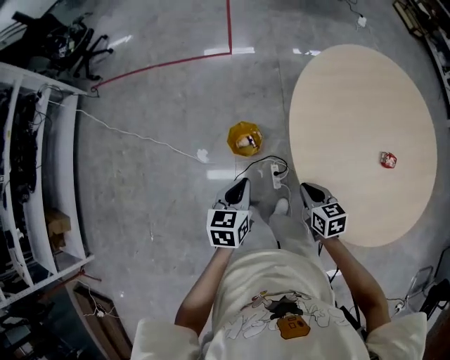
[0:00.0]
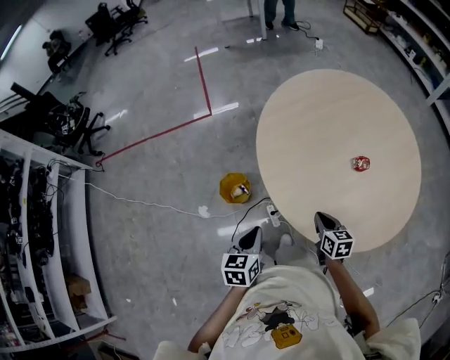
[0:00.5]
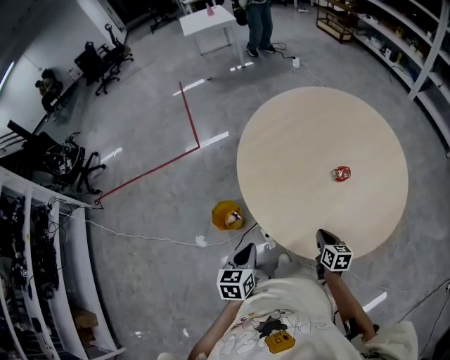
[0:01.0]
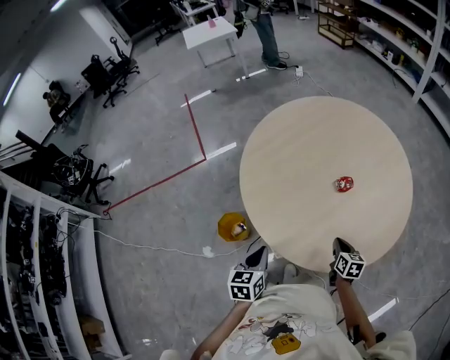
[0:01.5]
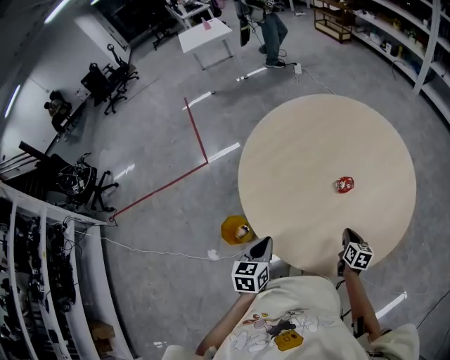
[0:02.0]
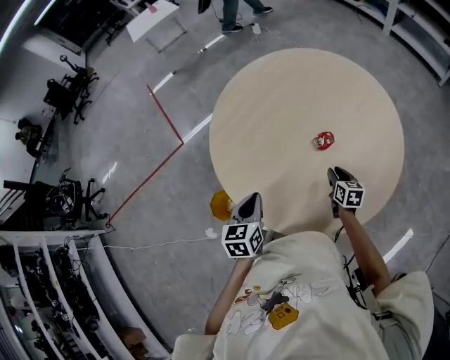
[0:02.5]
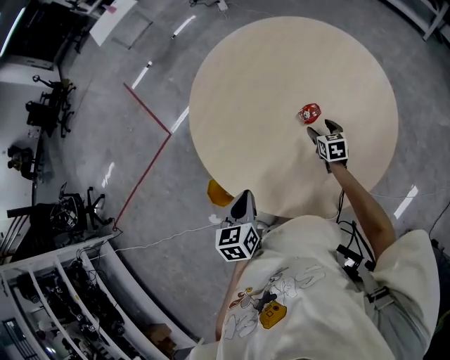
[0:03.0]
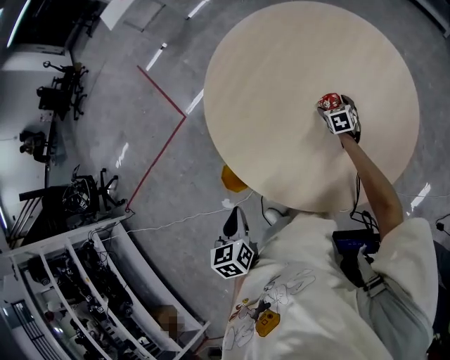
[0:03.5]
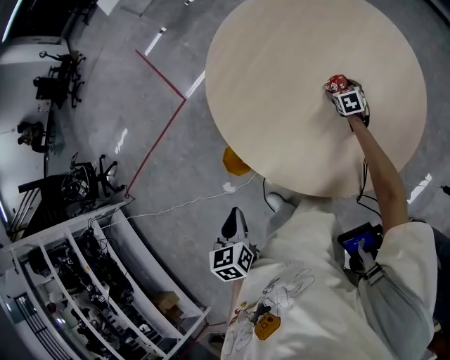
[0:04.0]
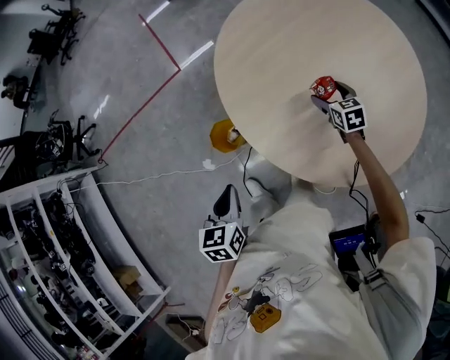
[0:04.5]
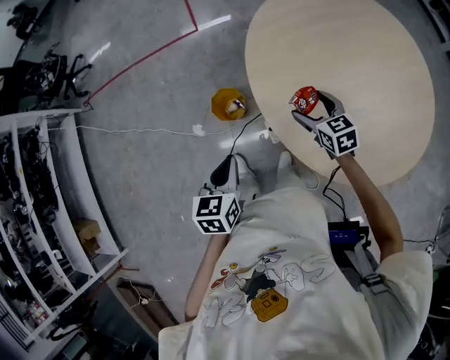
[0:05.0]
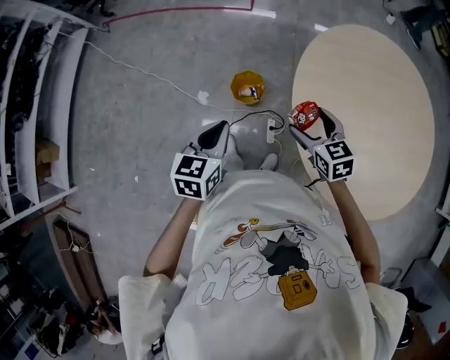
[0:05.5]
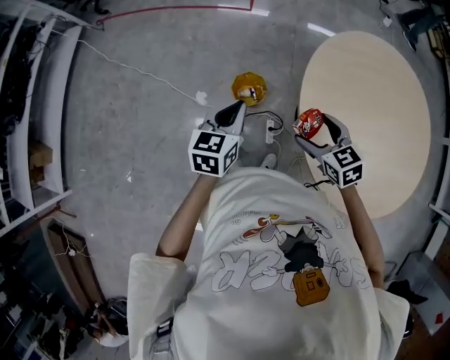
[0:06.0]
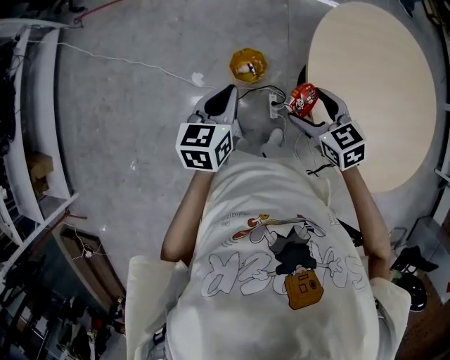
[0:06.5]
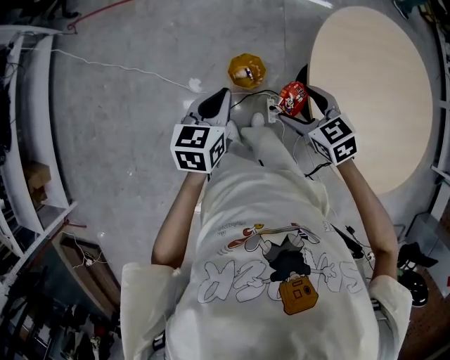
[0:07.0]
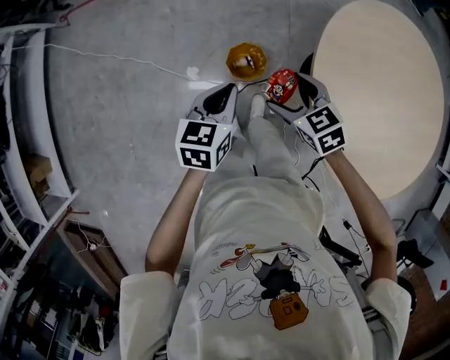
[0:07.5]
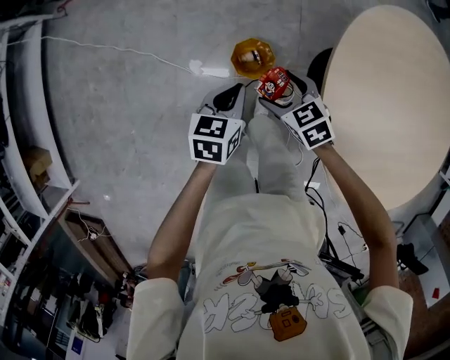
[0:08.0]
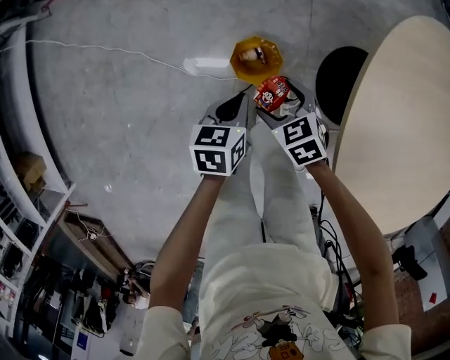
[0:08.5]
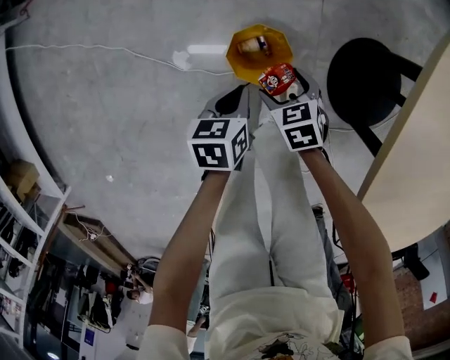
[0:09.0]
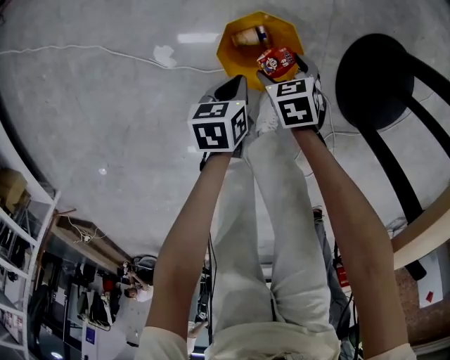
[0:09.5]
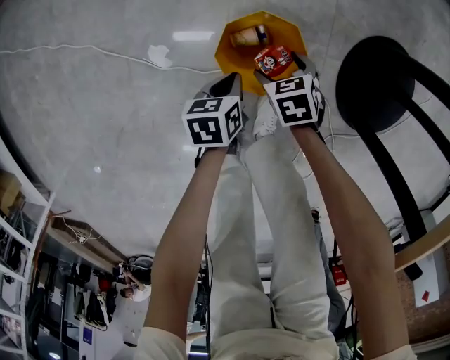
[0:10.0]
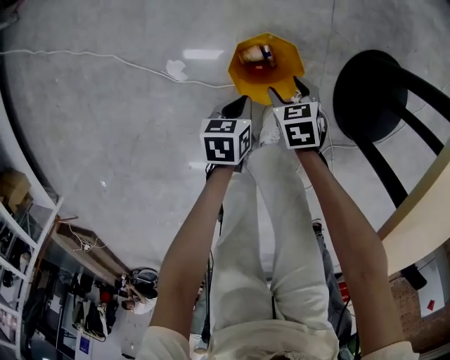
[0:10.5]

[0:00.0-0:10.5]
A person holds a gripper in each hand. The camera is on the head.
0:00.0 to 0:02.0: The left gripper ends up roughly 25 cm from where it was, and turns by some 20 degrees, while the right gripper moves some 40 cm, and swivels some 50 degrees.
0:02.0 to 0:04.0: The right gripper moves forward, about 20 cm, changes its angle by roughly 30 degrees, and opens up. Meanwhile the left gripper travels to the left and backward by approximately 10 cm.
0:04.0 to 0:06.5: The right gripper changes place by about 70 cm, and swivels roughly 60 degrees, while the left gripper moves about 30 cm, and swivels about 30 degrees.
0:06.5 to 0:08.5: The two grippers go approximately 35 cm downward and forward. The left gripper rotates roughly 20 degrees.
0:08.5 to 0:10.5: Both grippers move downward, approximately 30 cm.

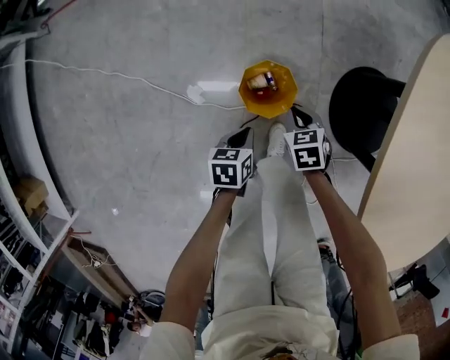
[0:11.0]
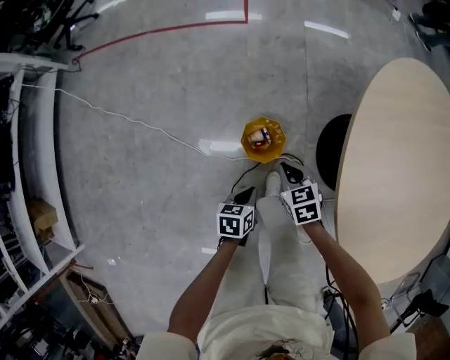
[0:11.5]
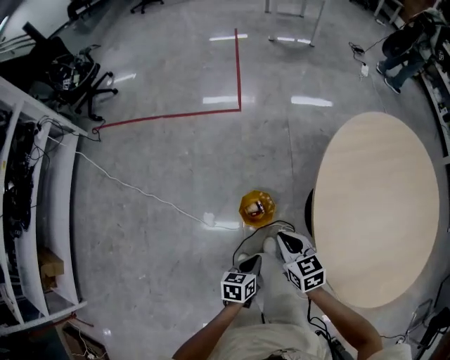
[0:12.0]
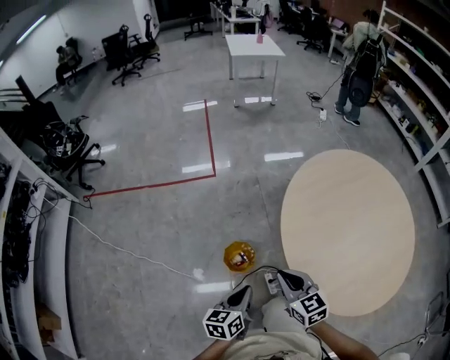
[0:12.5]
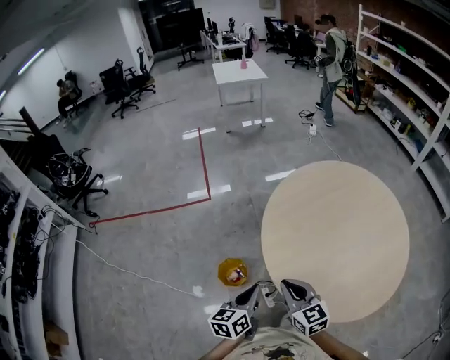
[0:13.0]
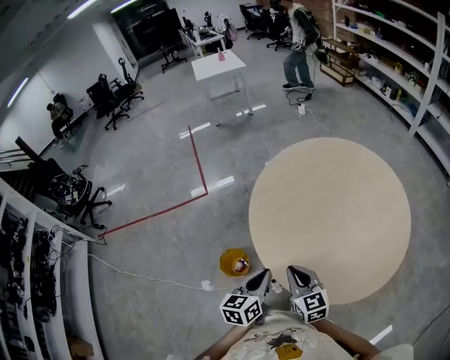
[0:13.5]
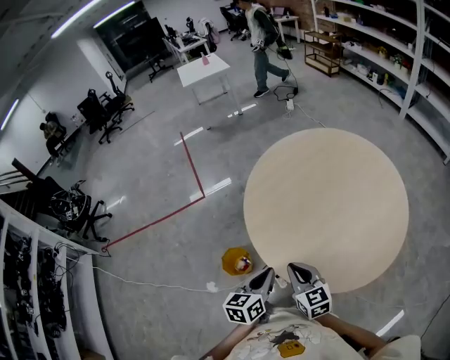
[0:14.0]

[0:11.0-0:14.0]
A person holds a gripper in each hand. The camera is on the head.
0:11.0 to 0:12.5: Both grippers move upward, roughly 50 cm. The left gripper points its fingers approximately 30 degrees further upward, while the right gripper angles its fingers upward, by some 40 degrees.
0:12.5 to 0:14.0: Both grippers move to the right, some 25 cm. The right gripper rotates about 20 degrees.

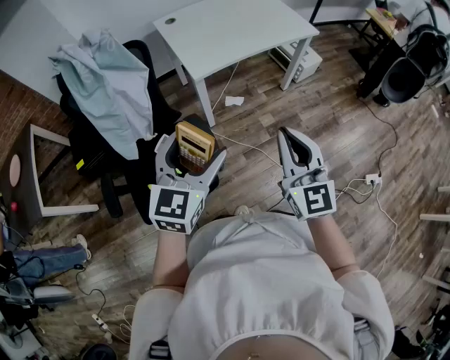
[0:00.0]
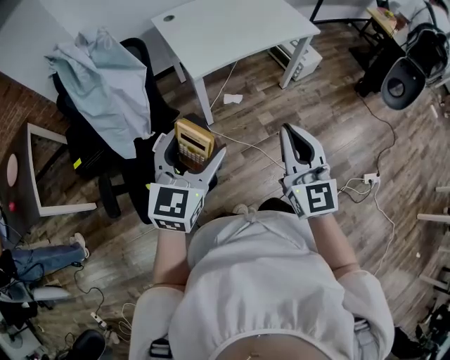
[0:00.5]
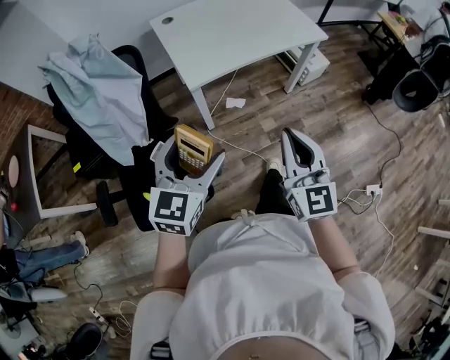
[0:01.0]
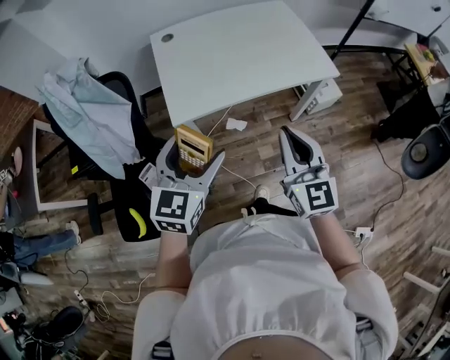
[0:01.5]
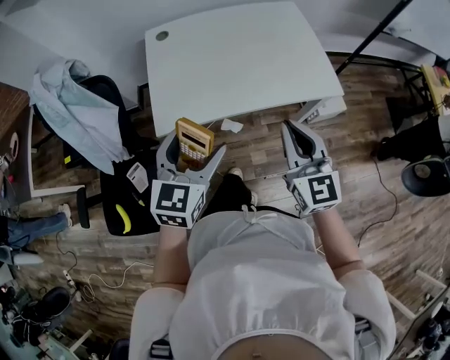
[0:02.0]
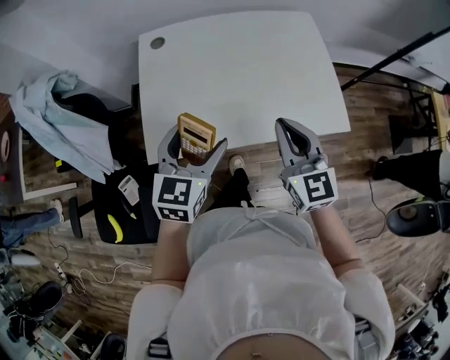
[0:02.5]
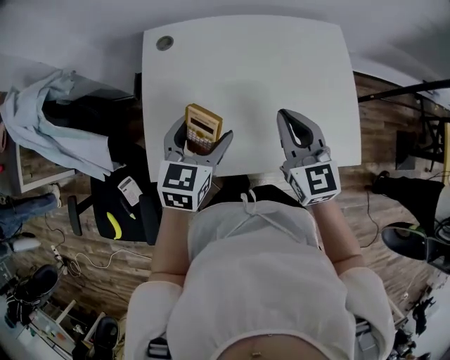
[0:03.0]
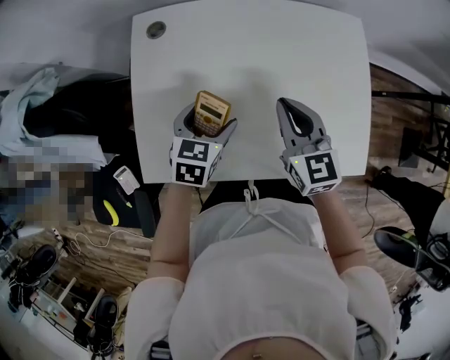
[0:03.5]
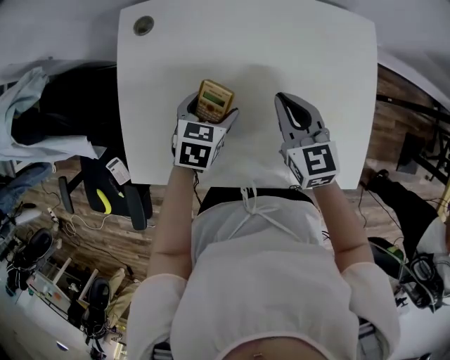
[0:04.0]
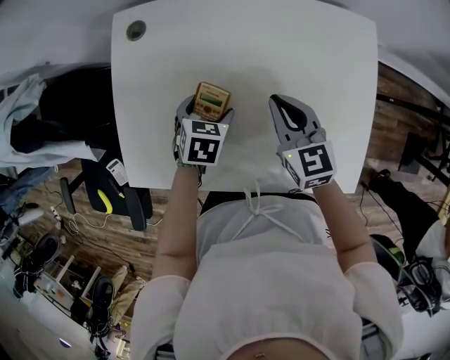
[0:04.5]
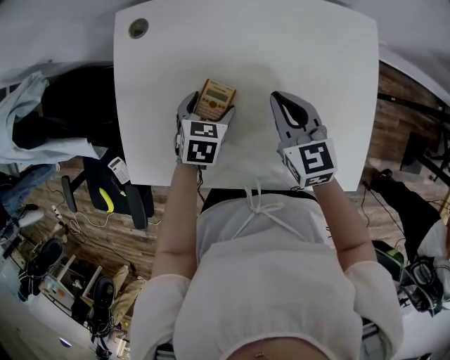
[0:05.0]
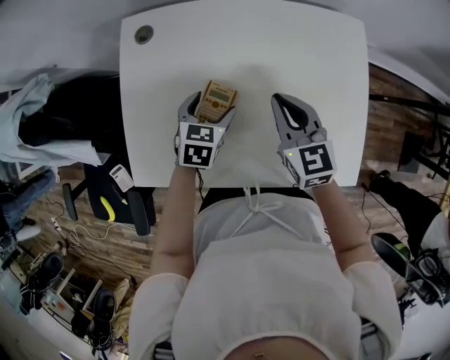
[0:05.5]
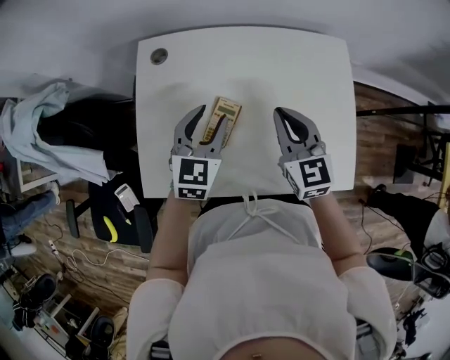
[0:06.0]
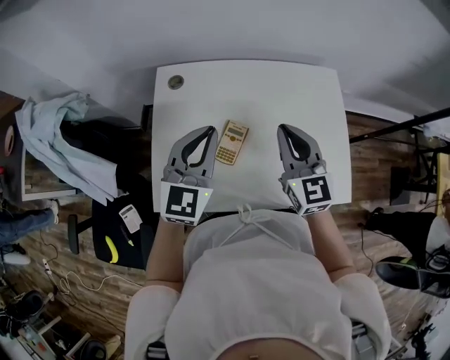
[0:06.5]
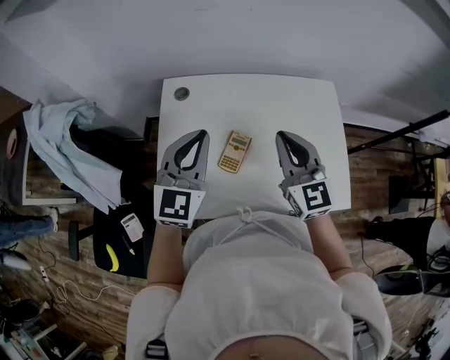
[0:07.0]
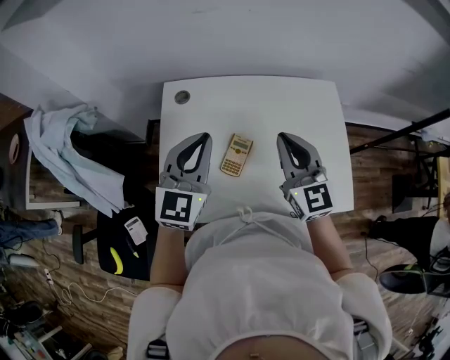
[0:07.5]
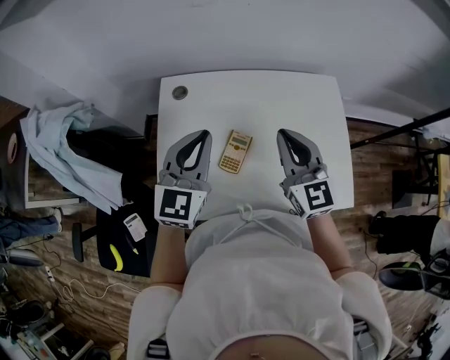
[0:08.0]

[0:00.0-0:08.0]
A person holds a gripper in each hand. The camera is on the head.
0:00.0 to 0:02.0: The two grippers travel together, forward and to the right, about 50 cm. The left gripper rotates approximately 20 degrees.
0:02.0 to 0:04.0: The grippers both shift forward and downward by about 50 cm. The right gripper changes its angle by approximately 30 degrees. Meanwhile the left gripper tips its fingers downward by about 30 degrees.
0:04.0 to 0:06.0: The right gripper travels upward by about 10 cm. Meanwhile the left gripper travels upward by roughly 15 cm, turns by some 30 degrees, and closes its fingers.
0:06.0 to 0:08.0: The right gripper heads upward, covering approximately 10 cm; the left gripper moves upward and to the left, roughly 15 cm, and closes its fingers.

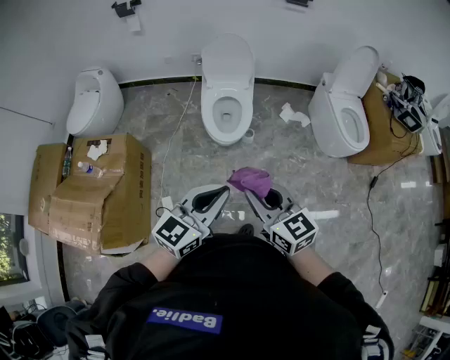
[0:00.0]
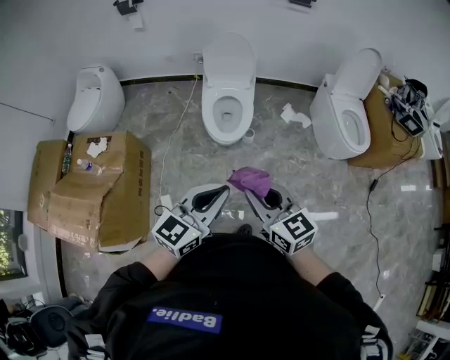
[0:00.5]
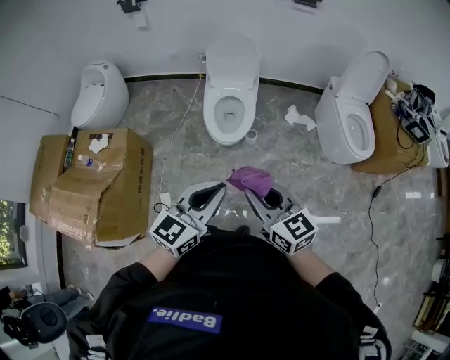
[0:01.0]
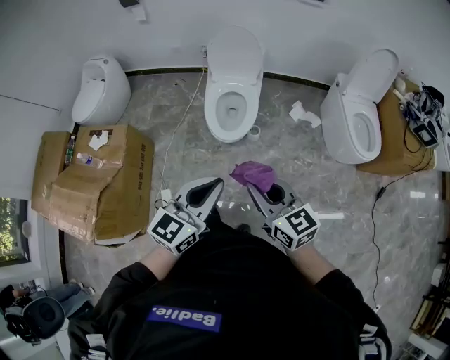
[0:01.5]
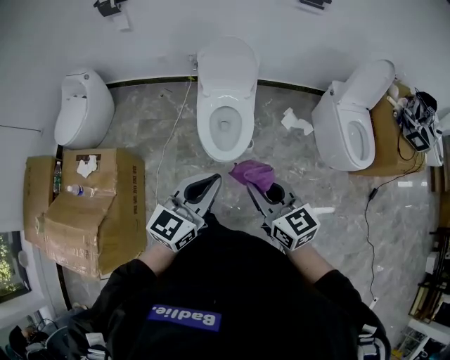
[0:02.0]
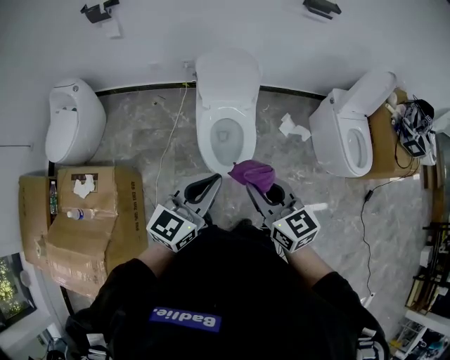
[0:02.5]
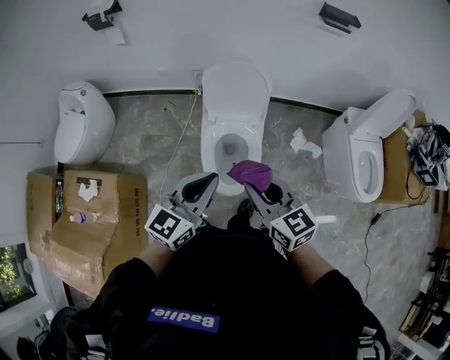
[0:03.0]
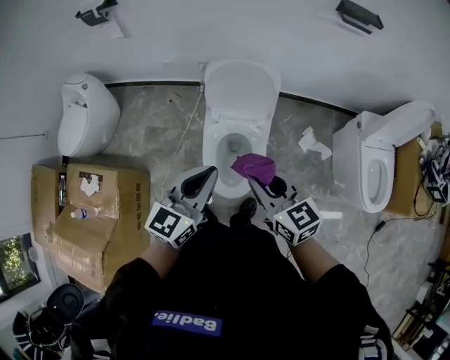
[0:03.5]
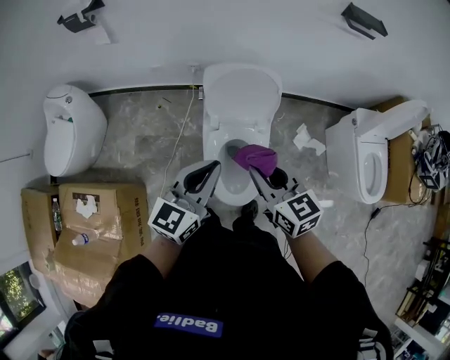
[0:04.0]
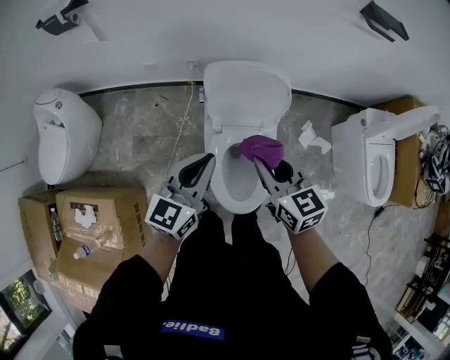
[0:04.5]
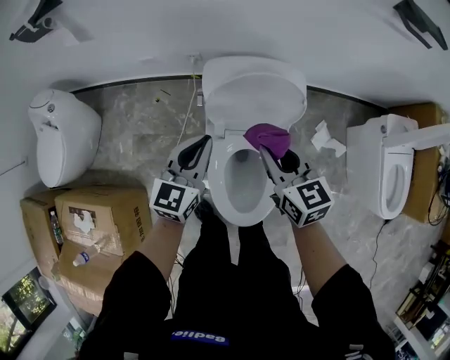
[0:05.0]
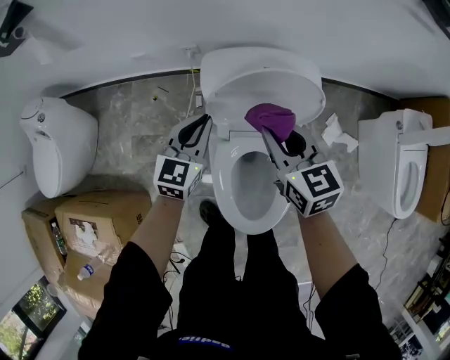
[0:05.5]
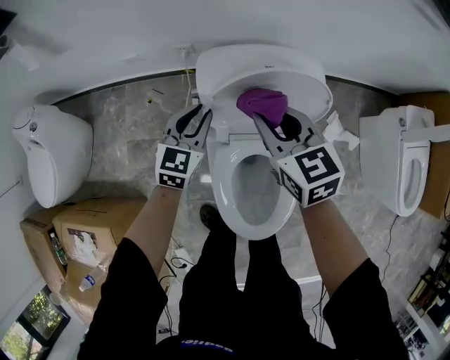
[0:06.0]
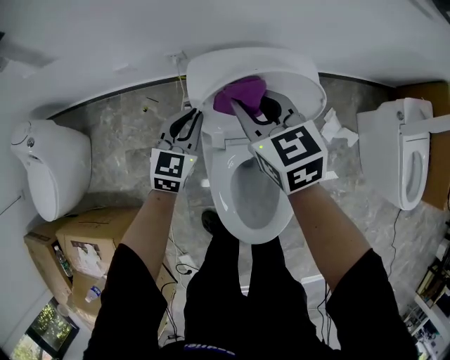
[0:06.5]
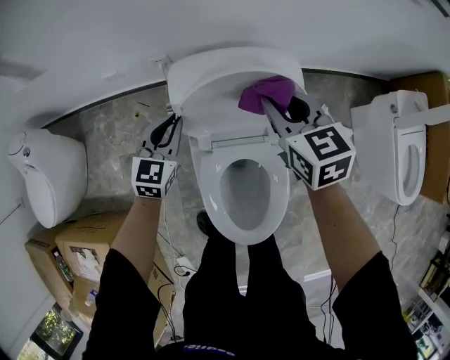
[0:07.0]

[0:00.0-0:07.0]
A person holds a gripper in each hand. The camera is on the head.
0:00.0 to 0:02.0: The two grippers go about 20 cm forward.
0:02.0 to 0:03.5: Both grippers move forward, roughly 30 cm.
0:03.5 to 0:05.0: Both grippers travel together forward and downward, some 30 cm.
0:05.0 to 0:07.0: The left gripper moves downward and forward, some 20 cm; the right gripper travels forward and downward by approximately 15 cm.
